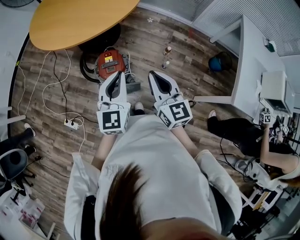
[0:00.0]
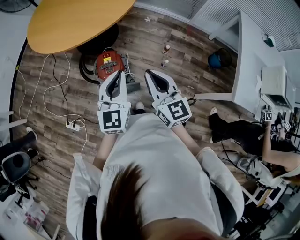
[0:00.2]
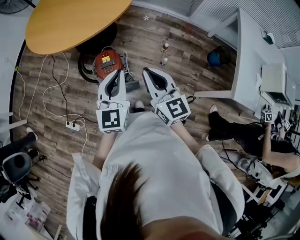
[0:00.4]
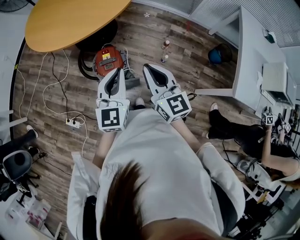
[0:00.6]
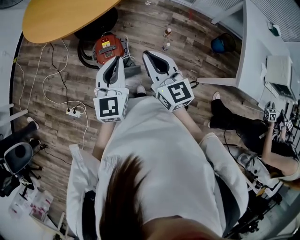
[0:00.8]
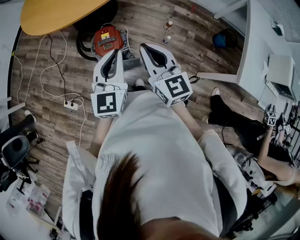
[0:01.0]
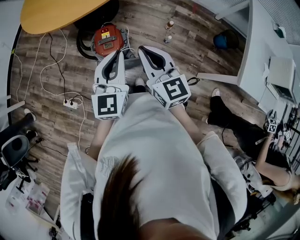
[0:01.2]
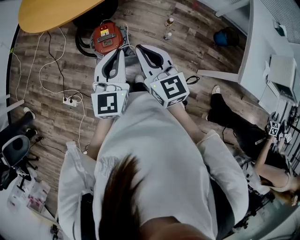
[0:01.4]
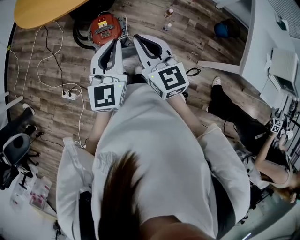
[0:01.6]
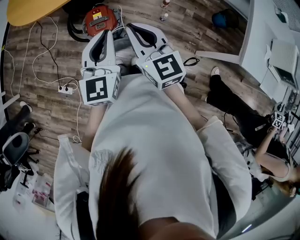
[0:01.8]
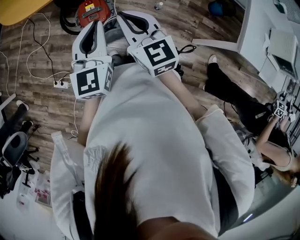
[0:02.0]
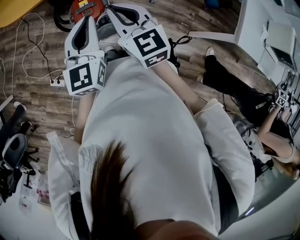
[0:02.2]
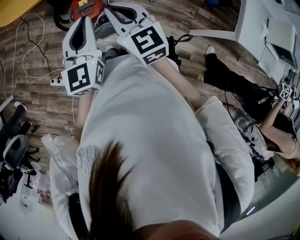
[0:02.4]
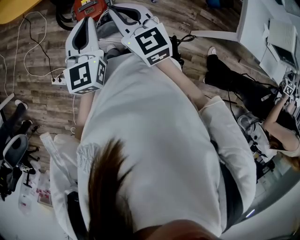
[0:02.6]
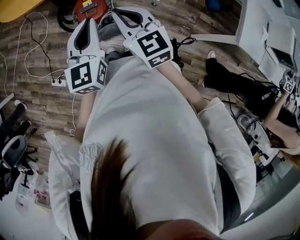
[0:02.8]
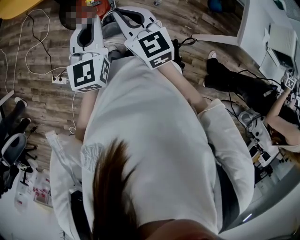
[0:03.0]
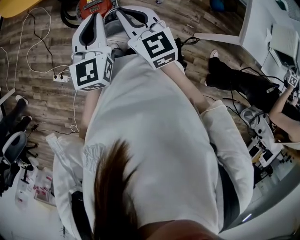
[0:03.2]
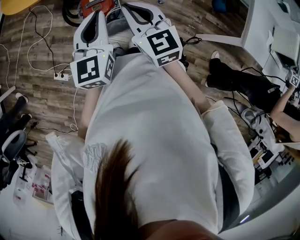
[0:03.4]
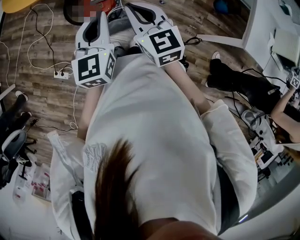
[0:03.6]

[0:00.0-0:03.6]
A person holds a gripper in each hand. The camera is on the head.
0:00.0 to 0:01.8: The grippers make only small movements.
0:01.8 to 0:03.6: The grippers move only a little.

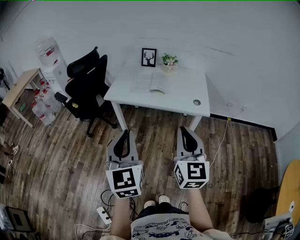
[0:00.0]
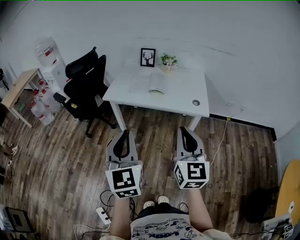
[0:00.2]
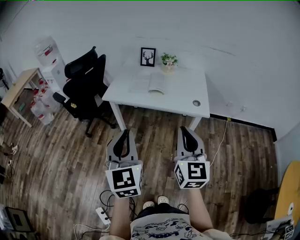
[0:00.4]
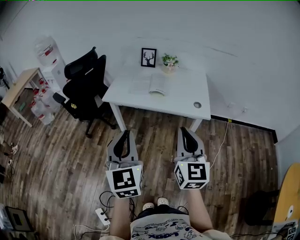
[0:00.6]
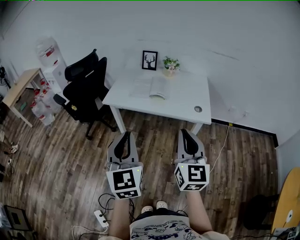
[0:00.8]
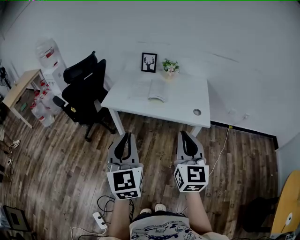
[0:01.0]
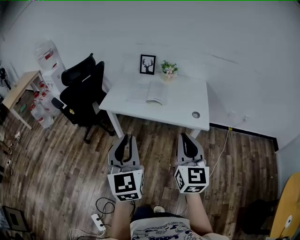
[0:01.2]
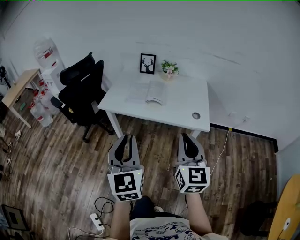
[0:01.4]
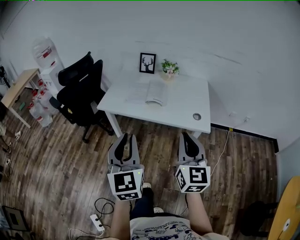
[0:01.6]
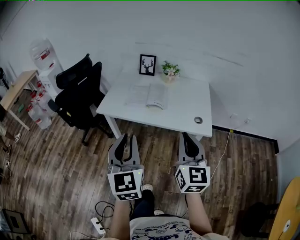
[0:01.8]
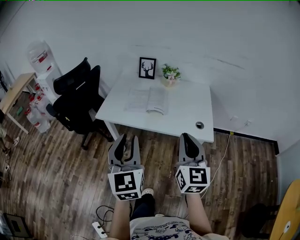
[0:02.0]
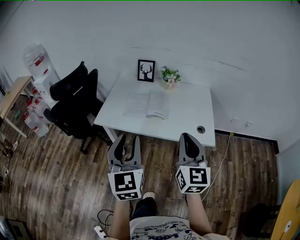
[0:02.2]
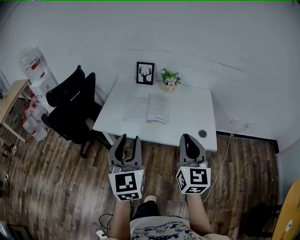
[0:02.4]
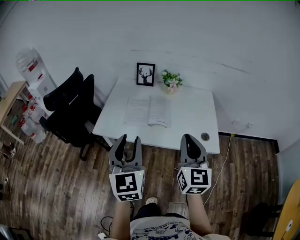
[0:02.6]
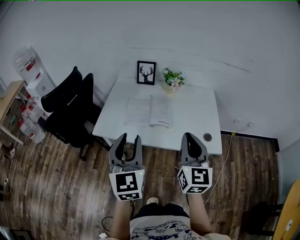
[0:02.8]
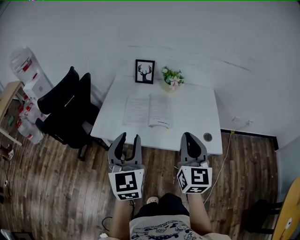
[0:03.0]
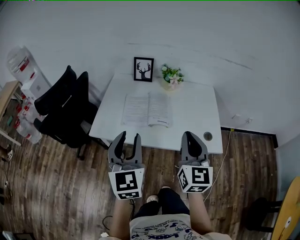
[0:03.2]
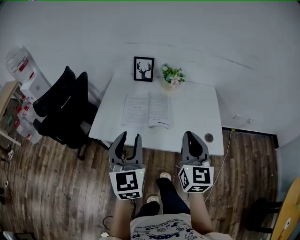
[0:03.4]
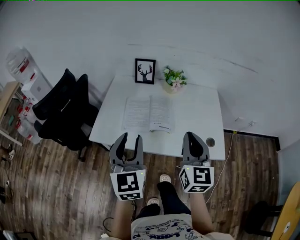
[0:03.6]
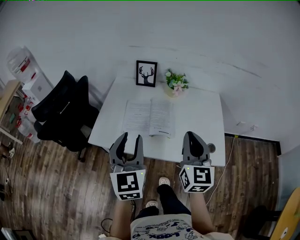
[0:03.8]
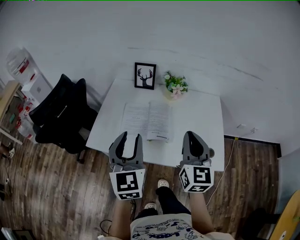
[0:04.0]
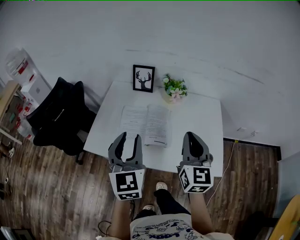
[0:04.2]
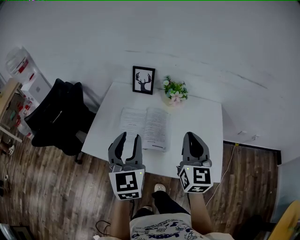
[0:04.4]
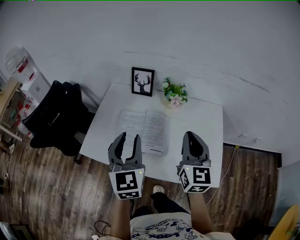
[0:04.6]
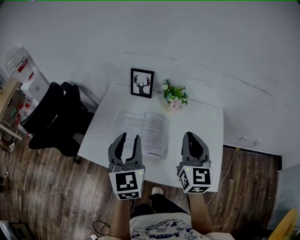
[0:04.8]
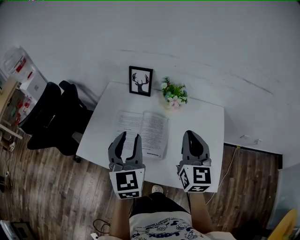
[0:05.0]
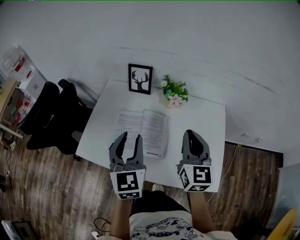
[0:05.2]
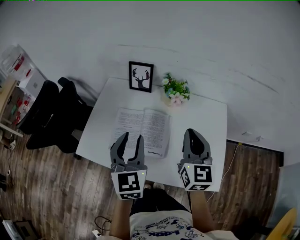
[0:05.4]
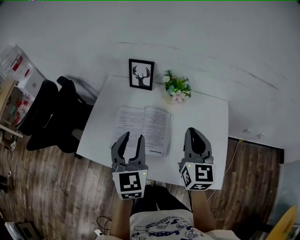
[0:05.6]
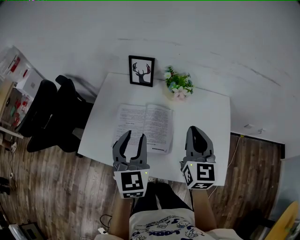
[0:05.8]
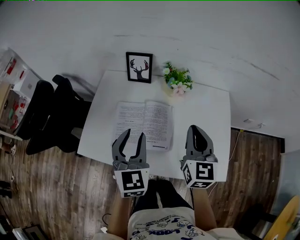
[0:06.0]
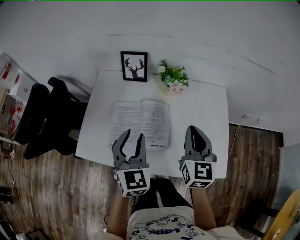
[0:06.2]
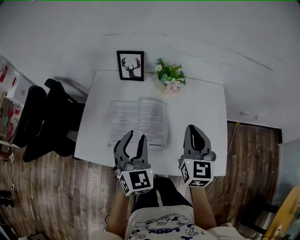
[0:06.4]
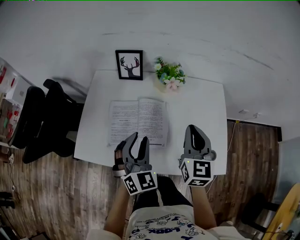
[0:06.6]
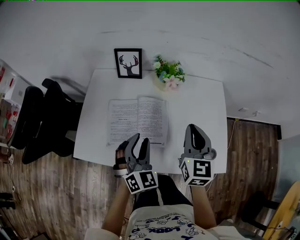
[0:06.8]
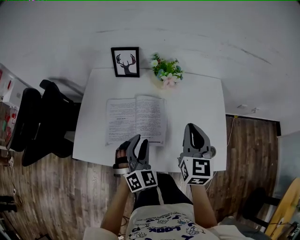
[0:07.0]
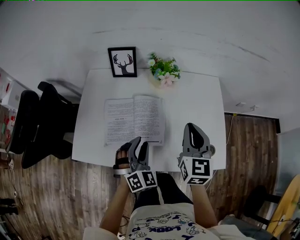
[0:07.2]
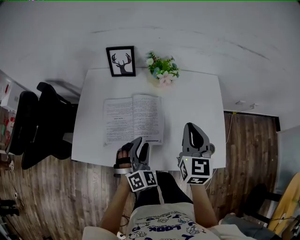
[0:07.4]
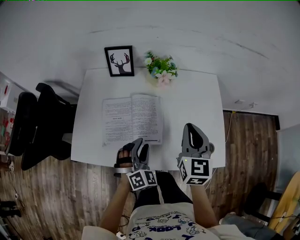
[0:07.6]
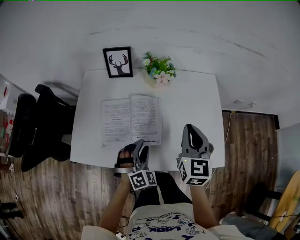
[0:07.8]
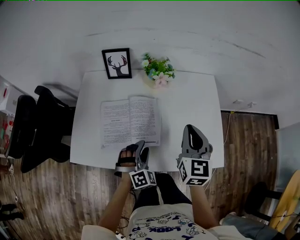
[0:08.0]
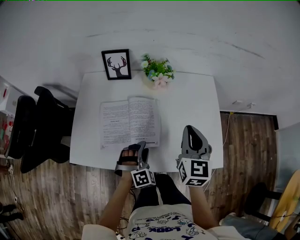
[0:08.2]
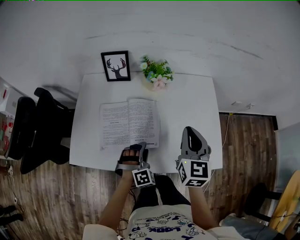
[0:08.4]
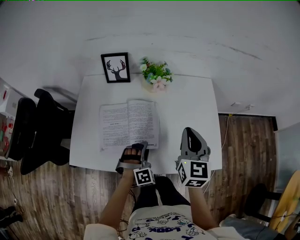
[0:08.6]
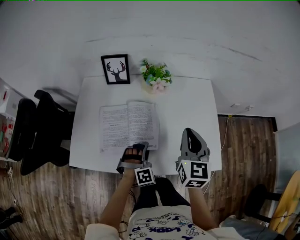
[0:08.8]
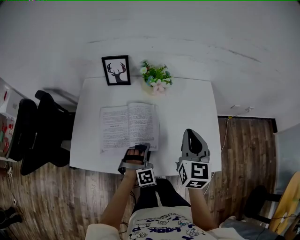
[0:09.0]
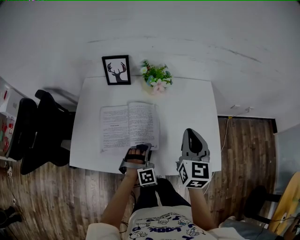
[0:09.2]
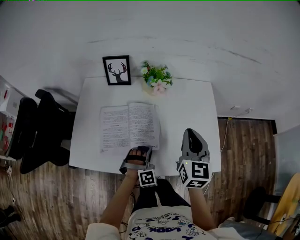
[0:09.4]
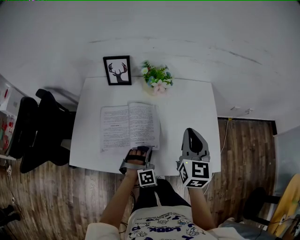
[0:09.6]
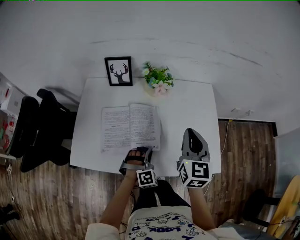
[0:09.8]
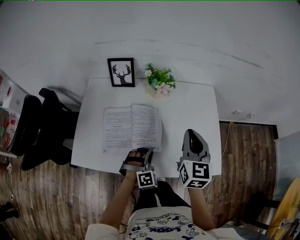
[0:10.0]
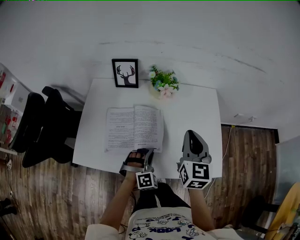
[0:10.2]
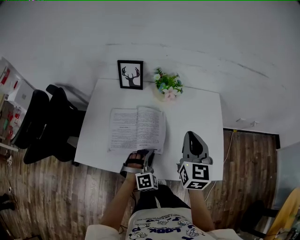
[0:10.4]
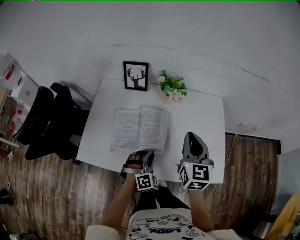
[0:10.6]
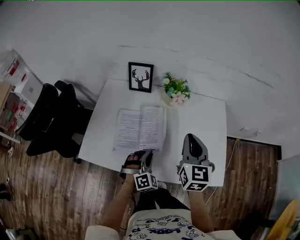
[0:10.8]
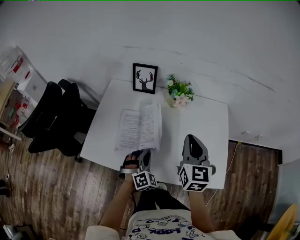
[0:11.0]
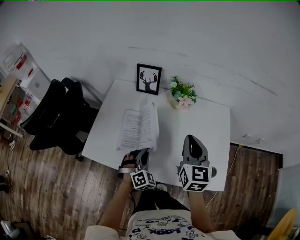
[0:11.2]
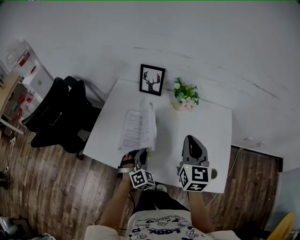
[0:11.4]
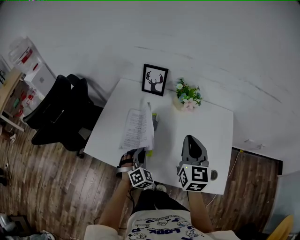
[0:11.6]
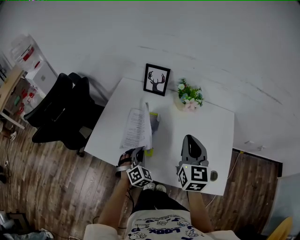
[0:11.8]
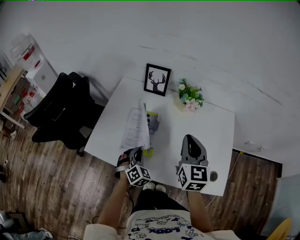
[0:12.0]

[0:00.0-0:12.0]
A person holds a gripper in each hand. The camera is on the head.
0:00.0 to 0:01.6: Both grippers travel together forward and to the right, about 15 cm.
0:01.6 to 0:03.0: Both grippers travel together forward, about 25 cm. The left gripper opens up.
0:03.0 to 0:04.4: Both grippers travel together forward, about 20 cm.
0:04.4 to 0:06.0: Both grippers travel together forward and downward, some 10 cm.
0:06.0 to 0:07.6: The right gripper changes place by roughly 5 cm. The left gripper shifts roughly 15 cm downward, and rotates around the line of its fingers by approximately 40 degrees, clockwise from behind.
0:07.6 to 0:09.0: The left gripper goes roughly 10 cm downward, and swivels some 30 degrees.
0:09.0 to 0:10.4: The left gripper closes up.
0:10.4 to 0:12.0: The left gripper moves to the left, approximately 15 cm, and turns by some 30 degrees; the right gripper heads to the left, covering roughly 10 cm.

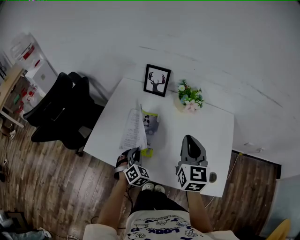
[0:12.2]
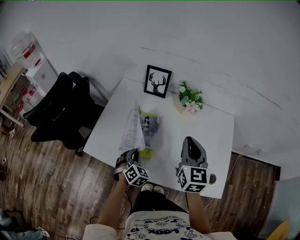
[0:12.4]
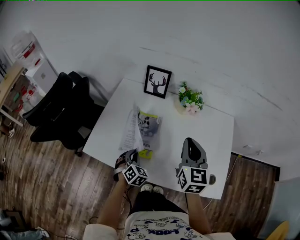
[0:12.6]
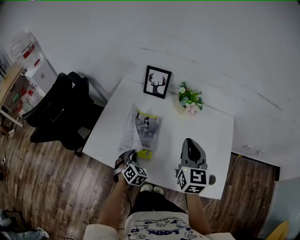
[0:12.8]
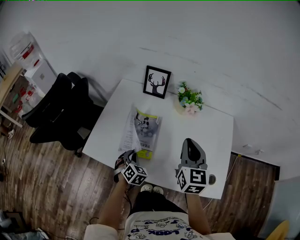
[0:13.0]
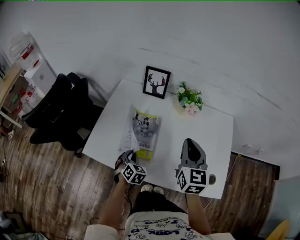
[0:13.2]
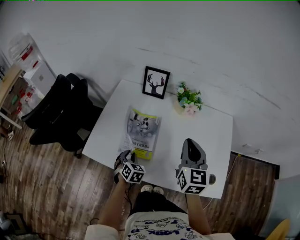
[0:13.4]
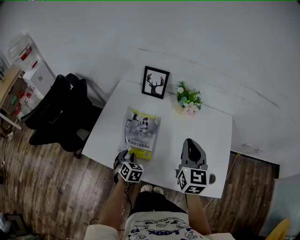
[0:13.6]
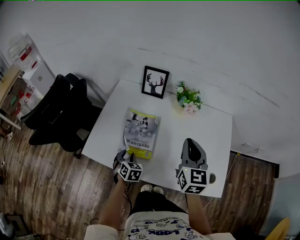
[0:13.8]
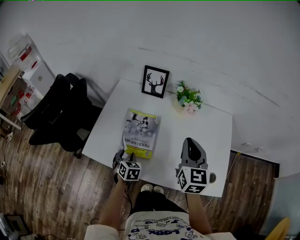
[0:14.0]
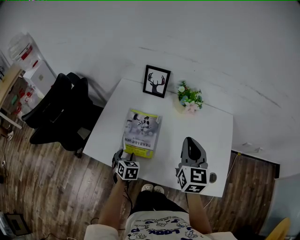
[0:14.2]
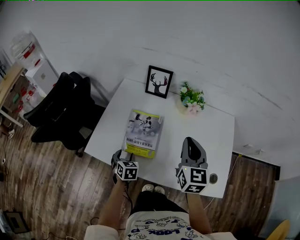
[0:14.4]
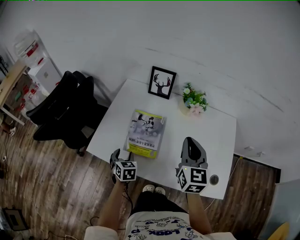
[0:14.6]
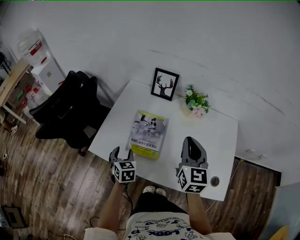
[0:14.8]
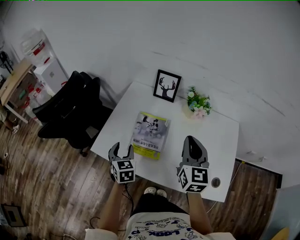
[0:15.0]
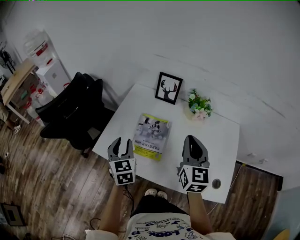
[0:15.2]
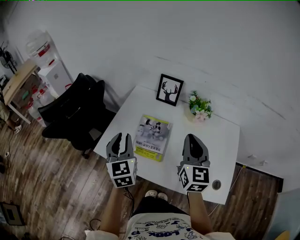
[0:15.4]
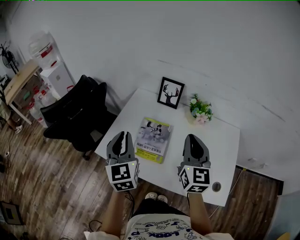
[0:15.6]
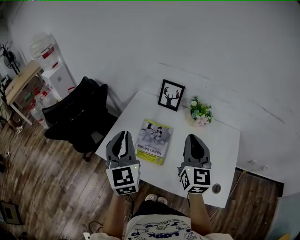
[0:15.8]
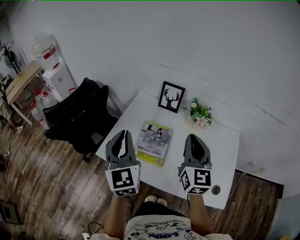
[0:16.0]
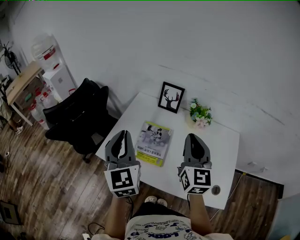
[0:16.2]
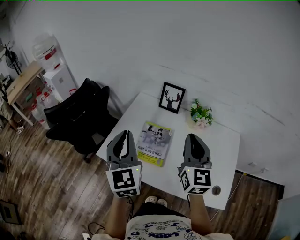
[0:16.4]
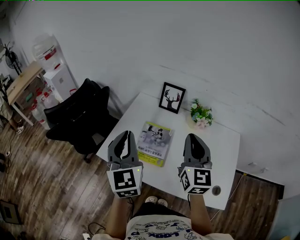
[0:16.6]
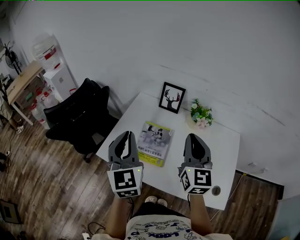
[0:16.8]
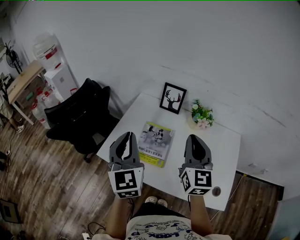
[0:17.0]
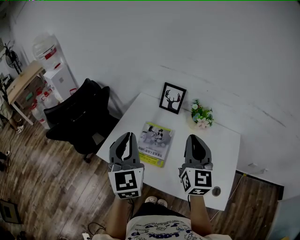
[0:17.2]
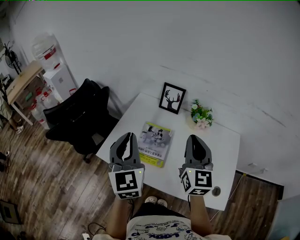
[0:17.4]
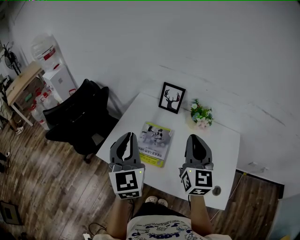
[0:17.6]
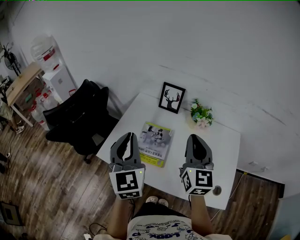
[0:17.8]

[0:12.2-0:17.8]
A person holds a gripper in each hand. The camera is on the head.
0:12.2 to 0:13.6: The left gripper moves some 5 cm, and swivels roughly 20 degrees.
0:13.6 to 0:15.0: The left gripper is displaced upward and to the left by about 15 cm, rotates roughly 30 degrees, and opens, while the right gripper changes place by approximately 5 cm.
0:15.0 to 0:16.4: The right gripper shifts roughly 5 cm upward; the left gripper goes some 25 cm upward, tilts its fingers roughly 30 degrees upward, and closes up.
0:16.4 to 0:17.8: Both grippers stay about where they are.

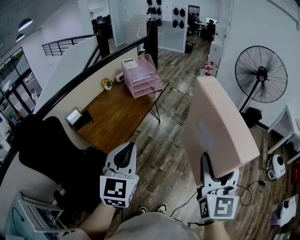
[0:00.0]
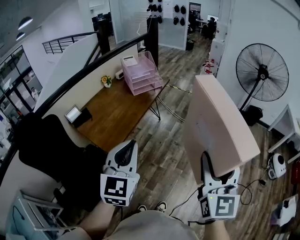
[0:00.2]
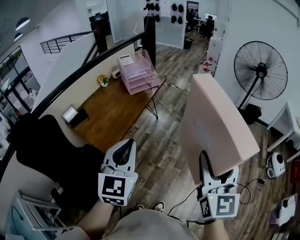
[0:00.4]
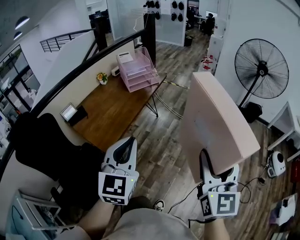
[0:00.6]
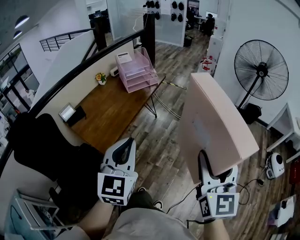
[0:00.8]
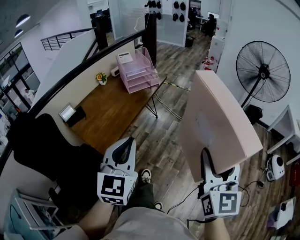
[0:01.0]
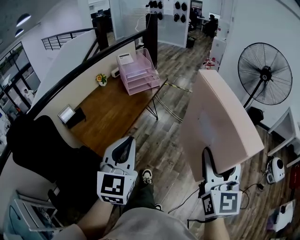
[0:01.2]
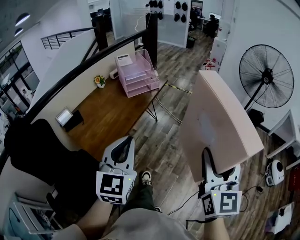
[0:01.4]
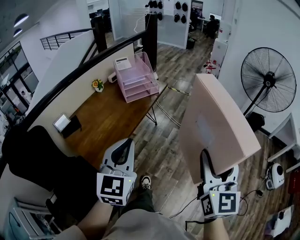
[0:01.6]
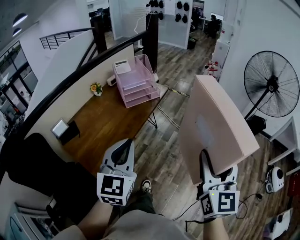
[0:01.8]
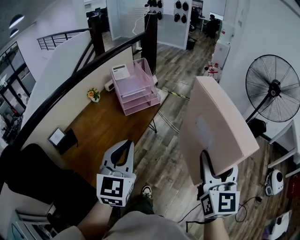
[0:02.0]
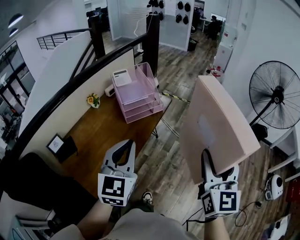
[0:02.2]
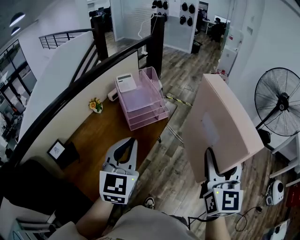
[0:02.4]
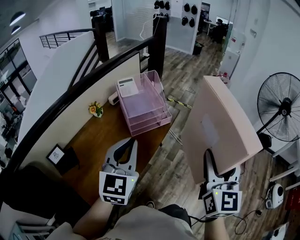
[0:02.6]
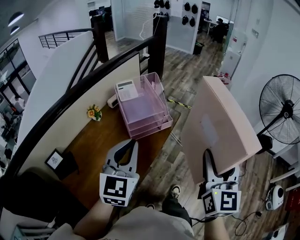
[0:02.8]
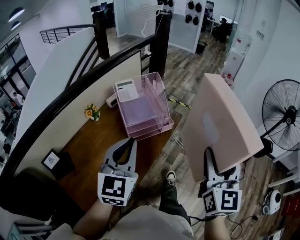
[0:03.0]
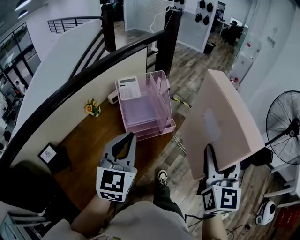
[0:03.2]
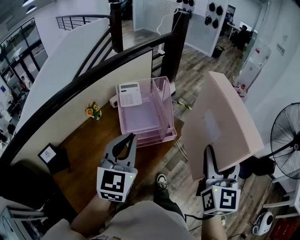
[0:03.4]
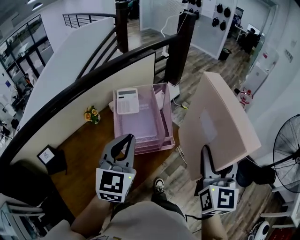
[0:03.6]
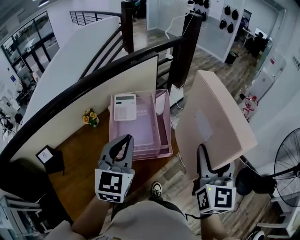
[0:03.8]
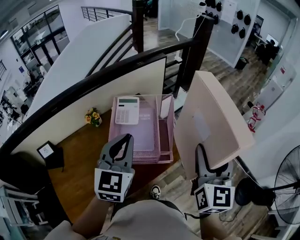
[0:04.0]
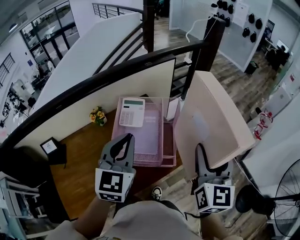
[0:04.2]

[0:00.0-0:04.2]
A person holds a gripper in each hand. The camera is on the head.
0:00.0 to 0:01.4: The grippers both shift forward by approximately 15 cm.
0:01.4 to 0:02.8: The two grippers travel together, forward, approximately 40 cm.
0:02.8 to 0:04.2: The right gripper shifts by roughly 40 cm, and rotates roughly 30 degrees; the left gripper shifts by roughly 30 cm, and swivels approximately 30 degrees.
